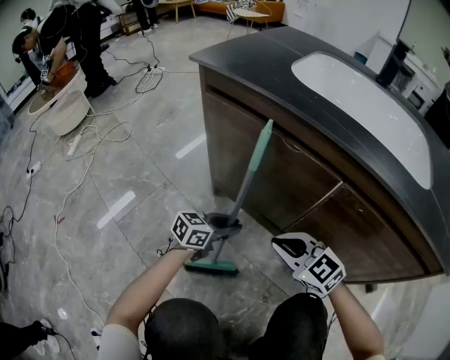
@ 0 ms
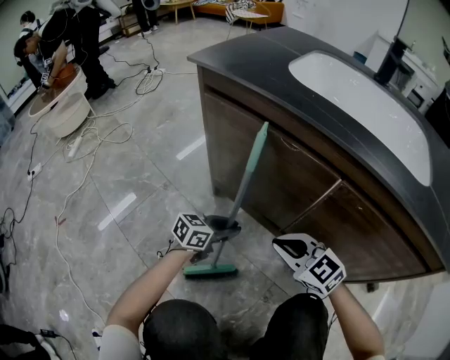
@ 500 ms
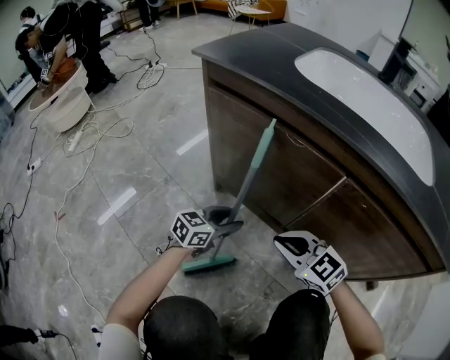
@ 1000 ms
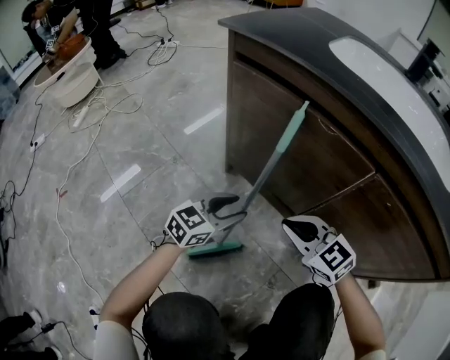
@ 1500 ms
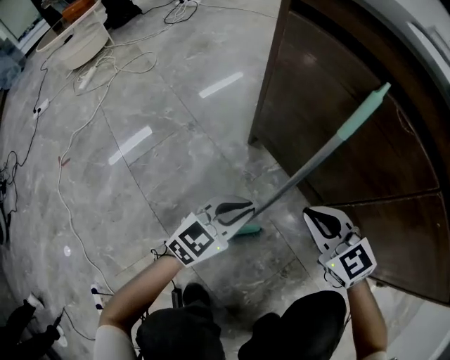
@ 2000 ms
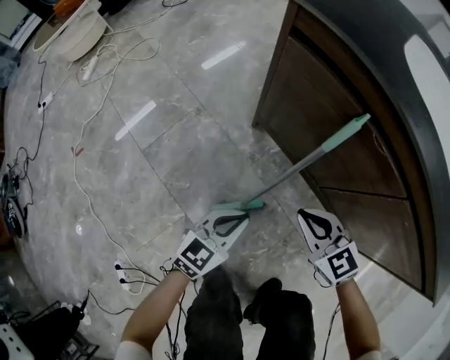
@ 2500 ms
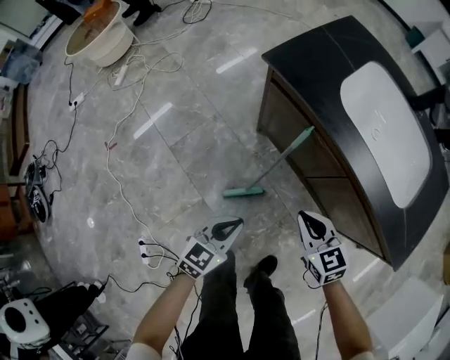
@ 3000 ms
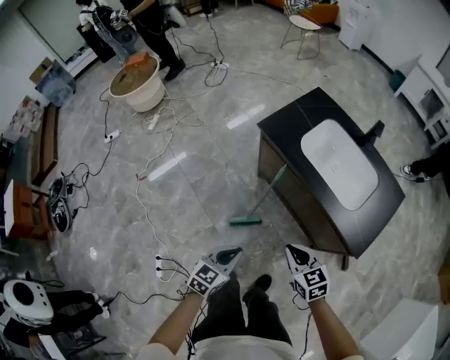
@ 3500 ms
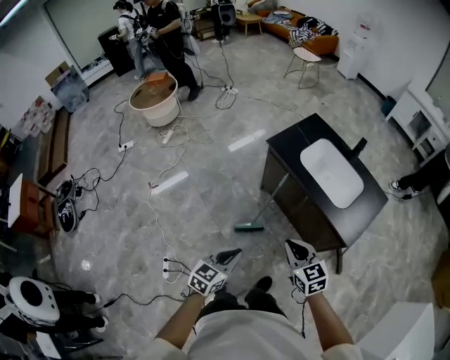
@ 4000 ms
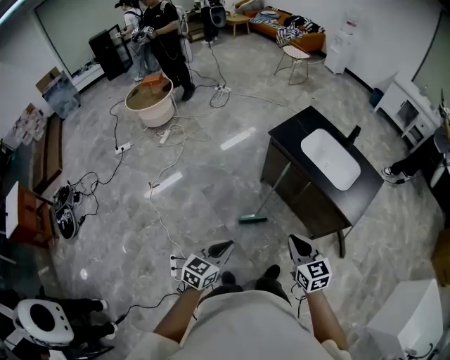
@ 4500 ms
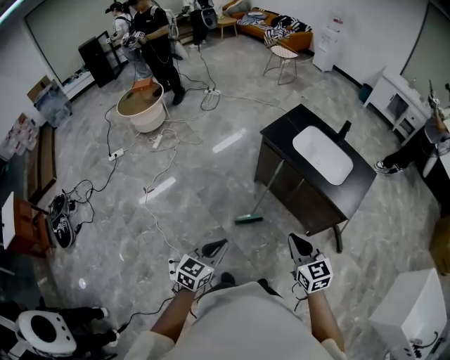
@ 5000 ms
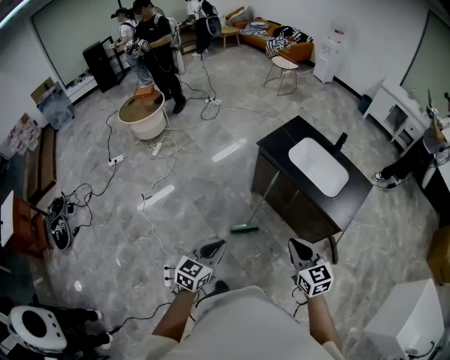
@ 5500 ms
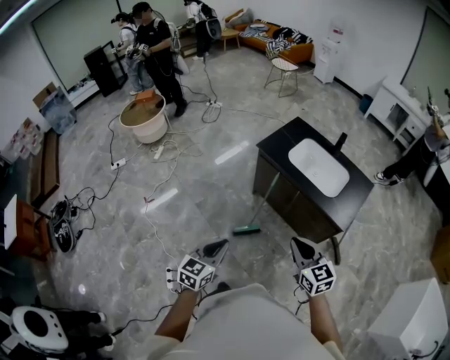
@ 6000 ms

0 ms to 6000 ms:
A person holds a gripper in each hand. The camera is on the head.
0 ms to 2000 ms: The right gripper shifts about 10 cm downward and to the left. The left gripper goes roughly 10 cm to the left, turns by roughly 30 degrees, and opens, then closes once more.
2000 ms to 4000 ms: The two grippers go roughly 80 cm upward and backward. The left gripper changes its angle by about 30 degrees.
4000 ms to 6000 ms: The left gripper moves upward and to the left, roughly 10 cm. Meanwhile the right gripper is displaced upward and backward by about 10 cm.

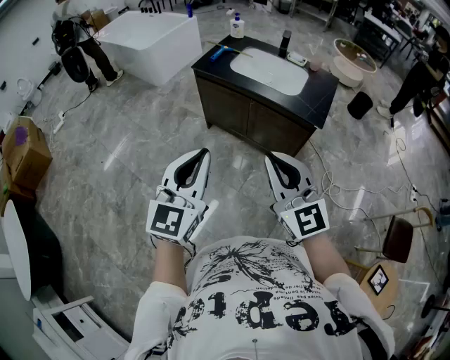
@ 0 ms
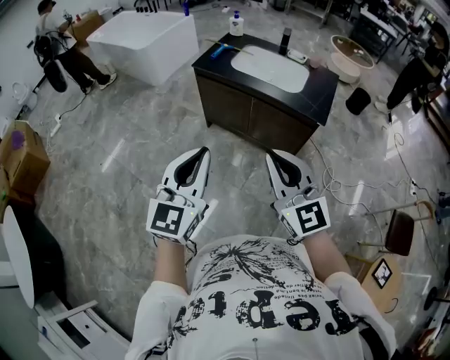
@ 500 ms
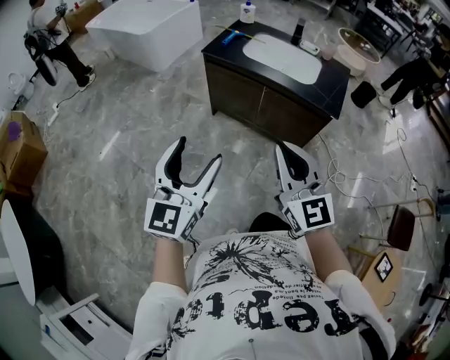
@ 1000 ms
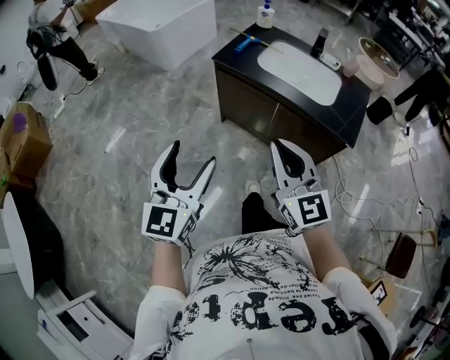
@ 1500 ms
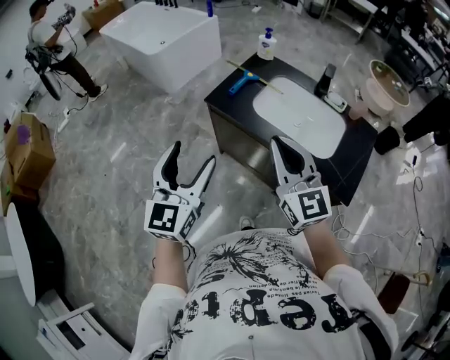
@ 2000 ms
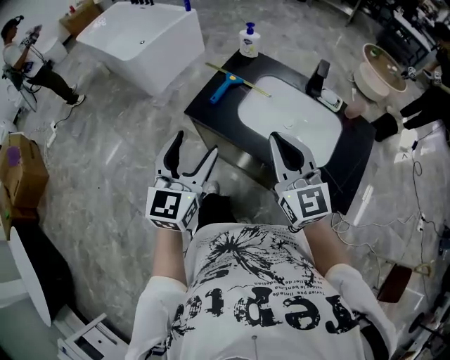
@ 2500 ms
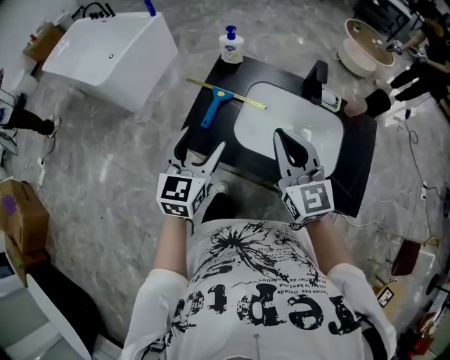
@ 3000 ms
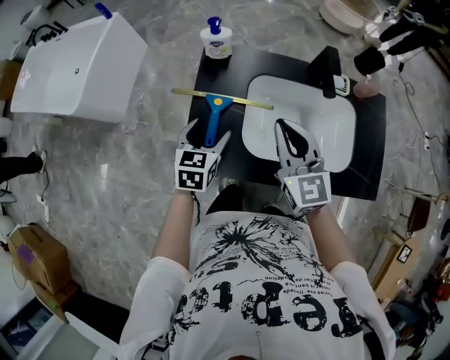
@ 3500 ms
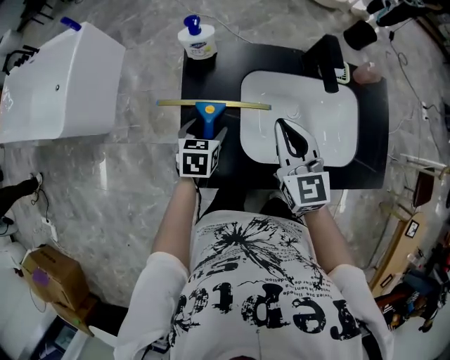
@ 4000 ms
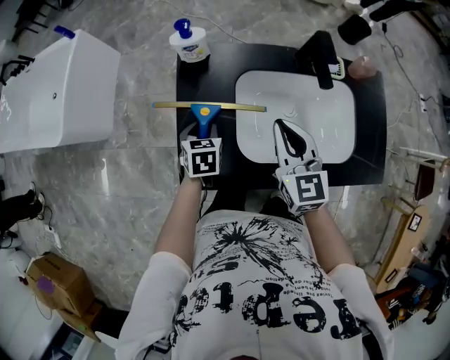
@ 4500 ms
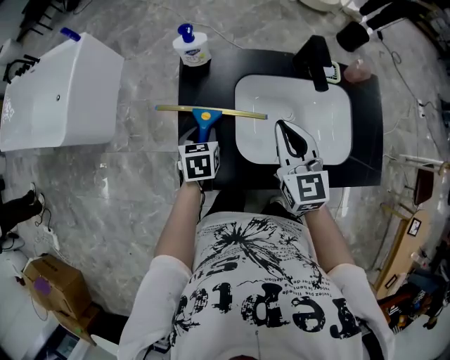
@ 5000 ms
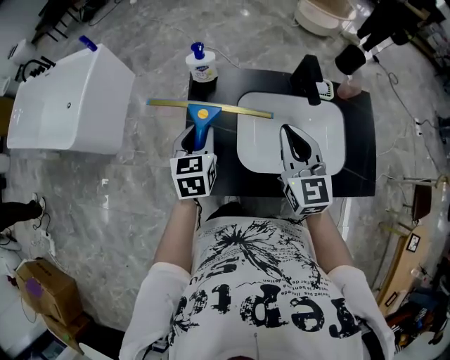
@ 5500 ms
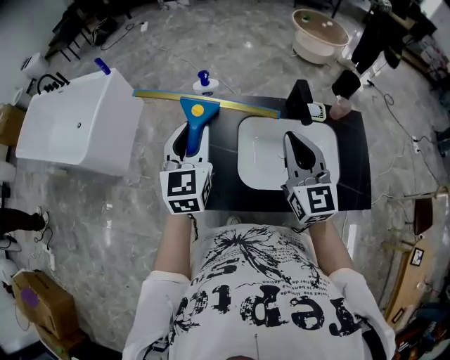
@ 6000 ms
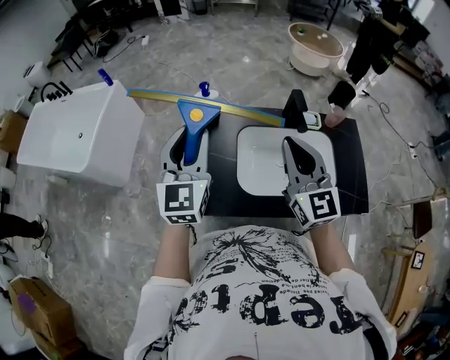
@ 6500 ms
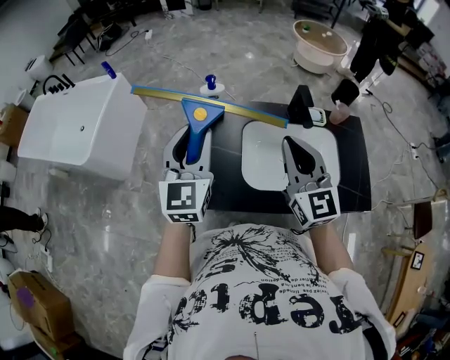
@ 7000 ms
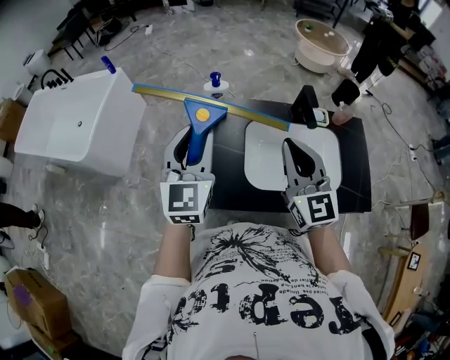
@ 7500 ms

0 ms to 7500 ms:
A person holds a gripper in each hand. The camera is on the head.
0 ms to 2000 ms: The two grippers travel together, forward, roughly 40 cm. The left gripper opens.
2000 ms to 4000 ms: The two grippers travel together, roughly 50 cm. The left gripper tips its fingers downward by some 50 degrees. The right gripper changes its angle by approximately 50 degrees.
4000 ms to 5500 ms: The right gripper shifts roughly 5 cm upward. The left gripper goes some 15 cm upward, swivels about 20 degrees, and closes up.
5500 ms to 7500 ms: The left gripper goes approximately 20 cm upward, and rotates roughly 30 degrees; the right gripper moves upward and backward, approximately 10 cm.

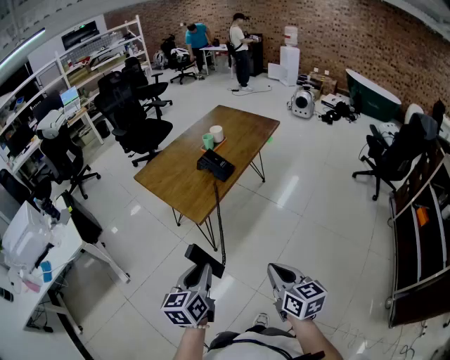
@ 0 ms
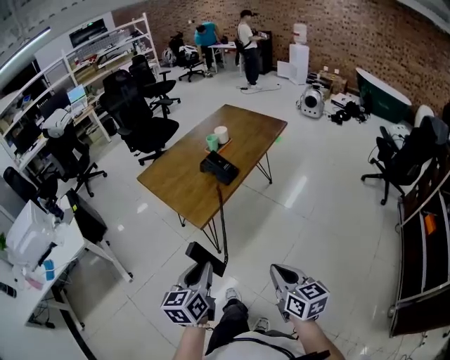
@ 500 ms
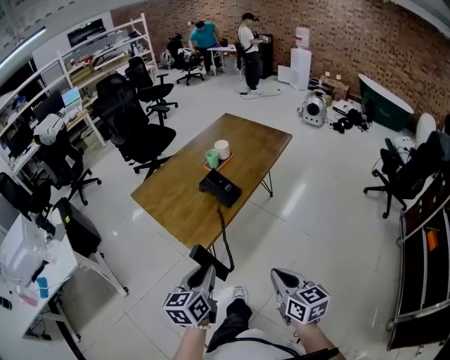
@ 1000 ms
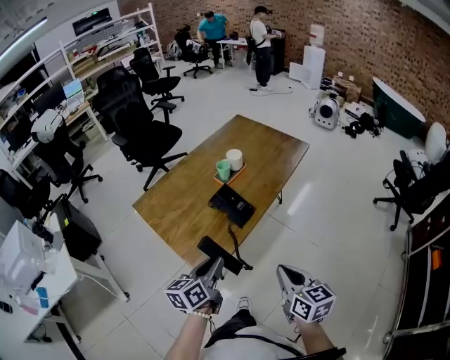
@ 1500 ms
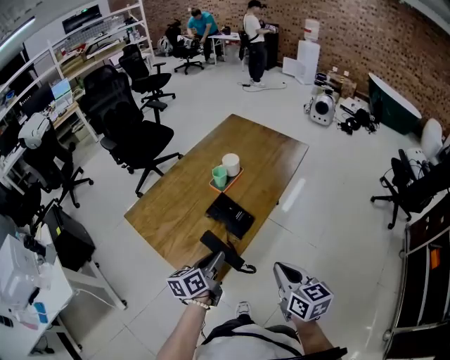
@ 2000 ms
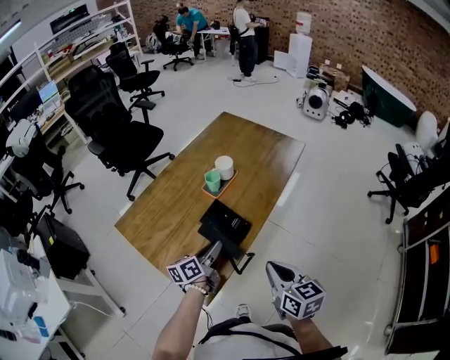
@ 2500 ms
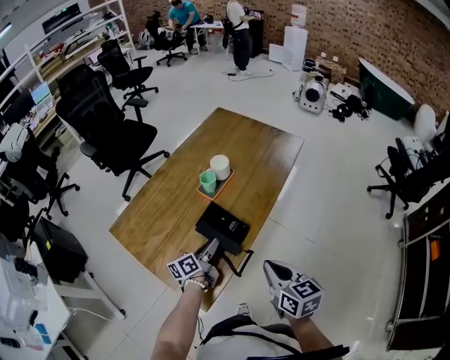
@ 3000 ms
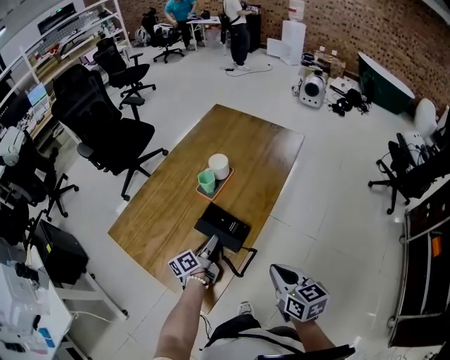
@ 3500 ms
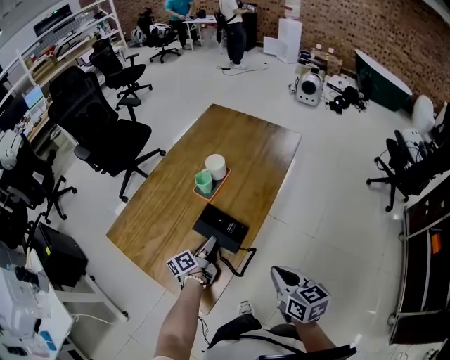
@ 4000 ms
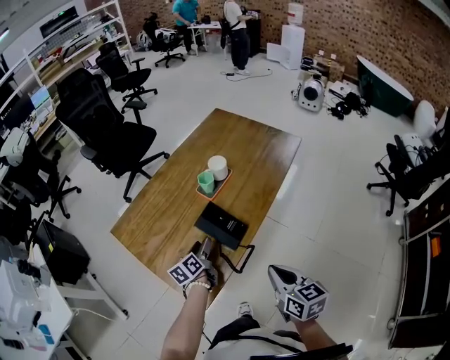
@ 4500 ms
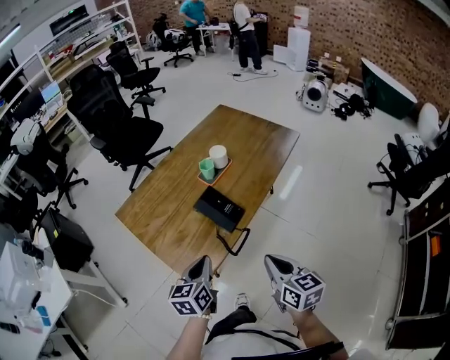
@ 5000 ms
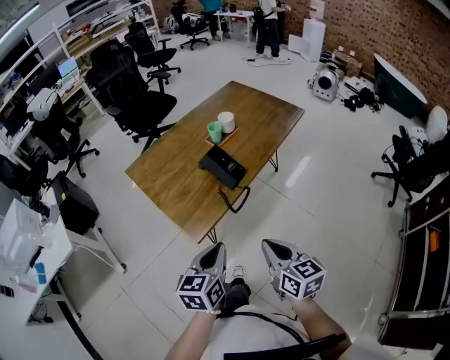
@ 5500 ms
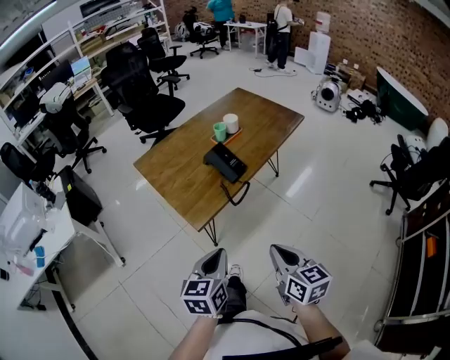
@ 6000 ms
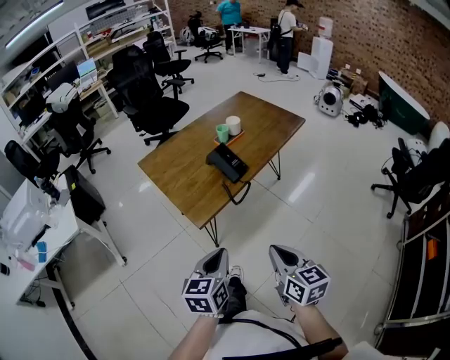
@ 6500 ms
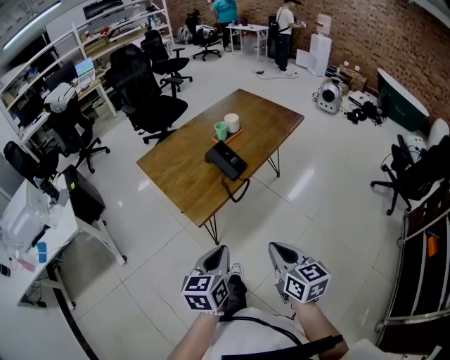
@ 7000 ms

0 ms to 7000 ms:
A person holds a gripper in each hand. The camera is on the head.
0 ms to 2000 ms: Both grippers move forward, about 35 cm. The left gripper swivels roughly 30 degrees.
2000 ms to 3500 ms: The right gripper heads forward and downward, covering some 10 cm. The left gripper travels forward and downward by approximately 20 cm.
3500 ms to 5000 ms: The right gripper travels backward by about 5 cm; the left gripper heads backward and upward, covering about 25 cm, turns by approximately 40 degrees, and opens, then closes again.
5000 ms to 7000 ms: The two grippers go about 20 cm backward.

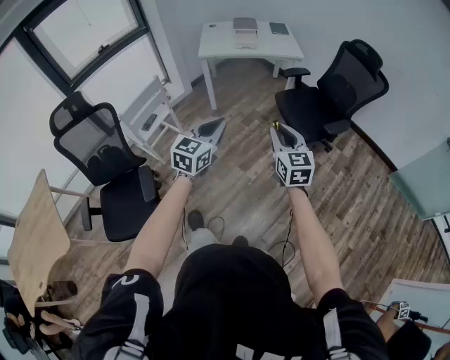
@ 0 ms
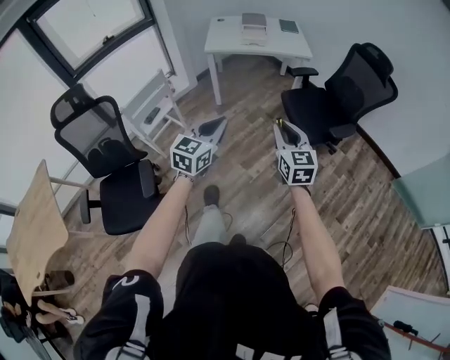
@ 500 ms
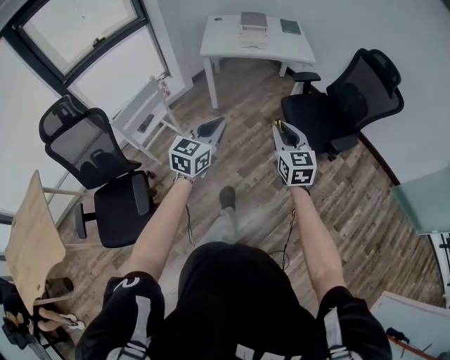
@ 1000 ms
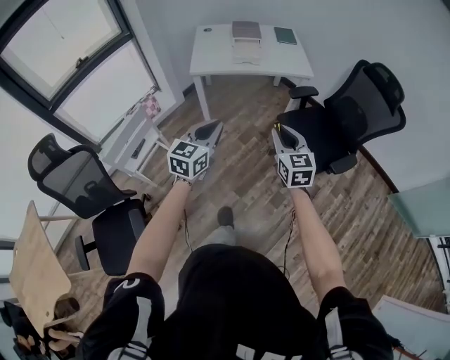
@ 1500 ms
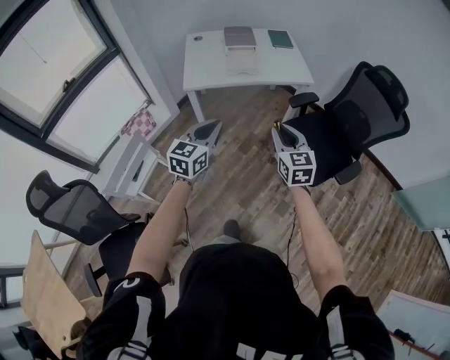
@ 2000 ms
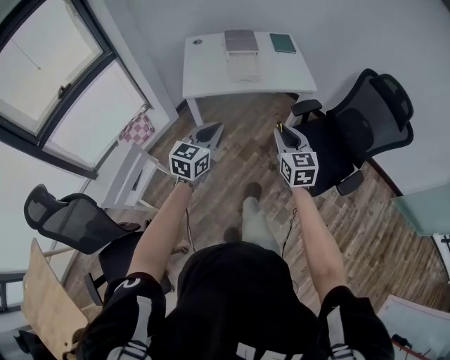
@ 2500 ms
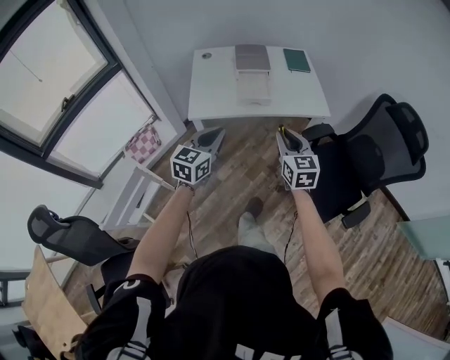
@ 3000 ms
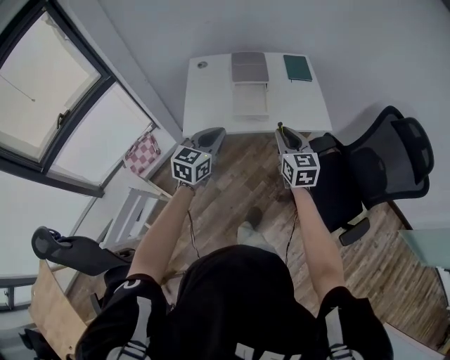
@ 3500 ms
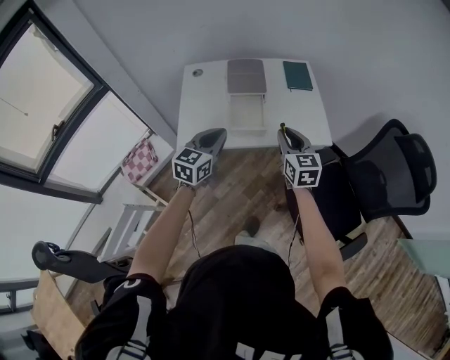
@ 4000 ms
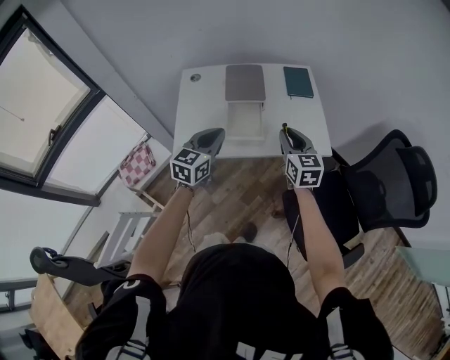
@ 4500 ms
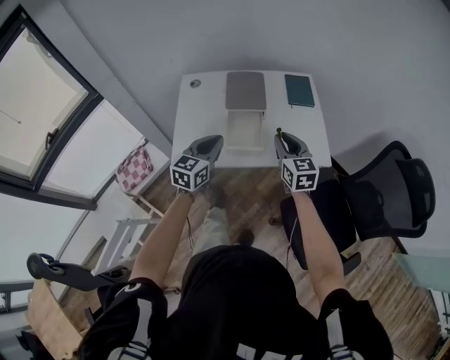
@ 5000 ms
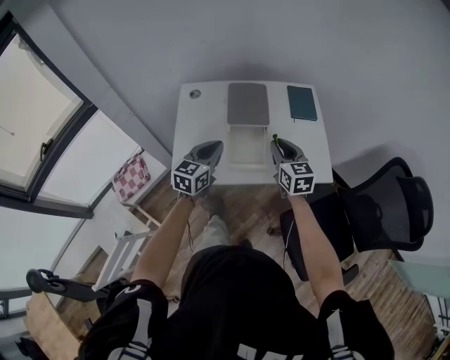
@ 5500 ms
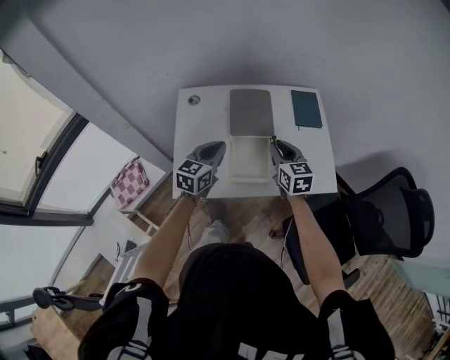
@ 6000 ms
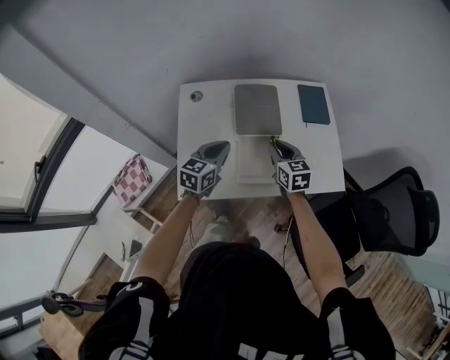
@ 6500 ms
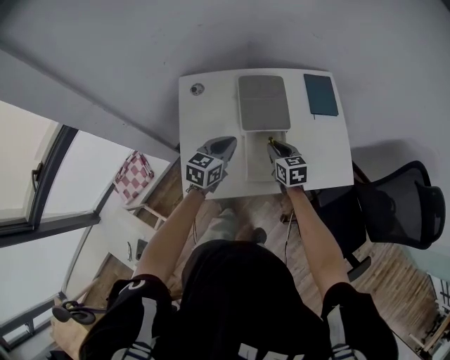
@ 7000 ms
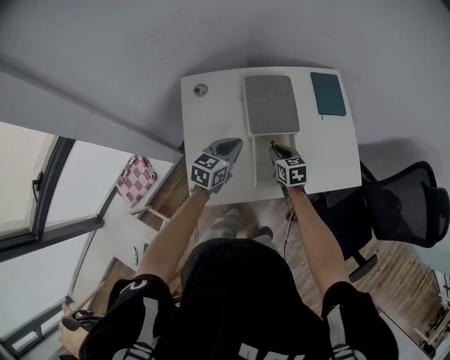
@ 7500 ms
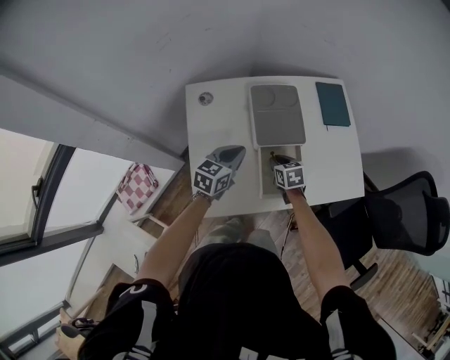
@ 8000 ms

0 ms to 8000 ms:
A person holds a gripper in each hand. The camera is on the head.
0 ms to 2000 ms: The pair of grippers is taken forward, approximately 40 cm.
2000 ms to 4000 ms: The two grippers go approximately 40 cm forward.
4000 ms to 6000 ms: The grippers both shift forward by approximately 20 cm.
6000 ms to 8000 ms: The right gripper moves downward and to the left, some 25 cm, and turns by approximately 30 degrees. Meanwhile the left gripper moves downward, forward and to the left, some 15 cm.
